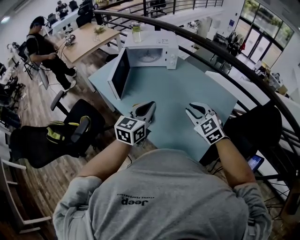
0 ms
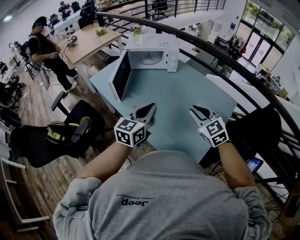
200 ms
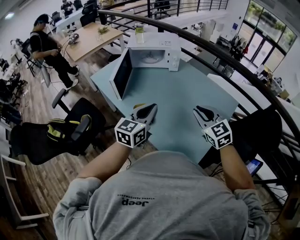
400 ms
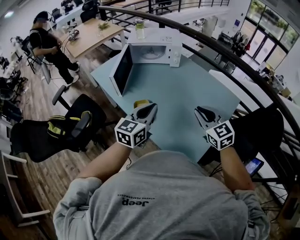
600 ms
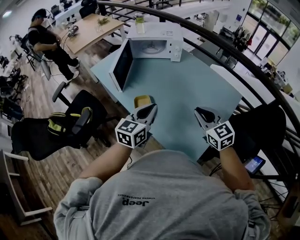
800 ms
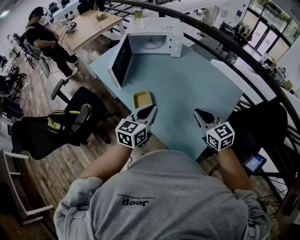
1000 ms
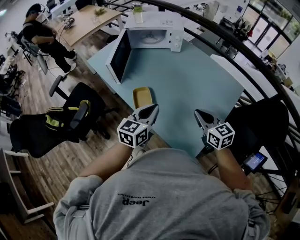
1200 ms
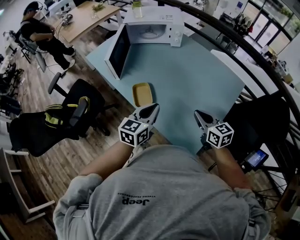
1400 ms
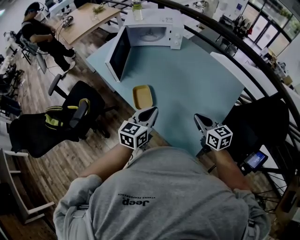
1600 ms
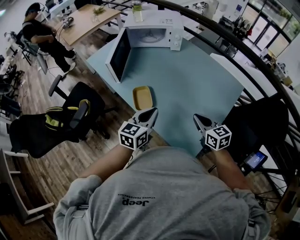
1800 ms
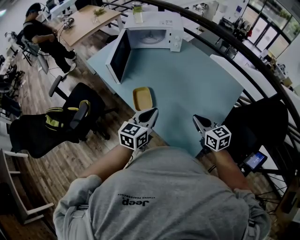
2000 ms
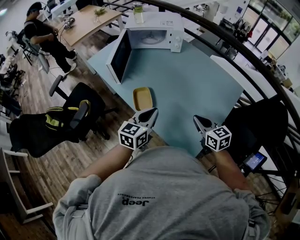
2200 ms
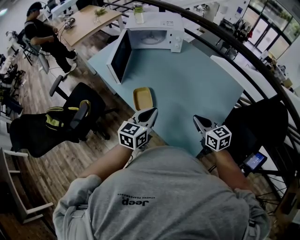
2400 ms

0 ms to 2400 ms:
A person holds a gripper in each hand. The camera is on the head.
0 ms to 1200 ms: Both grippers travel together downward, approximately 5 cm. The right gripper turns by roughly 30 degrees.
1200 ms to 2400 ms: The grippers make only small movements.

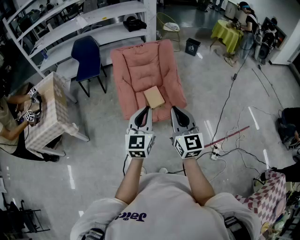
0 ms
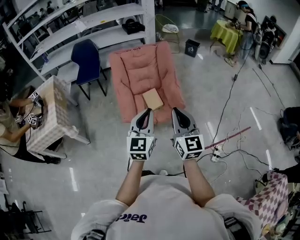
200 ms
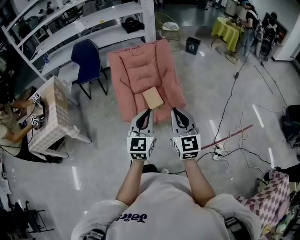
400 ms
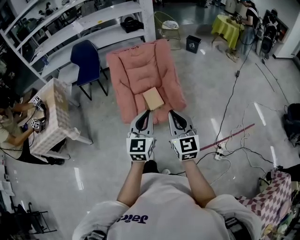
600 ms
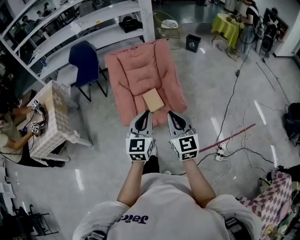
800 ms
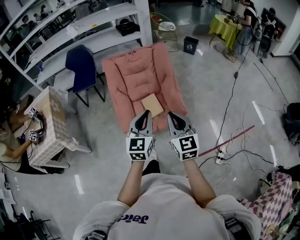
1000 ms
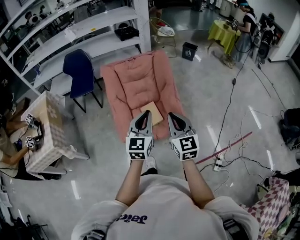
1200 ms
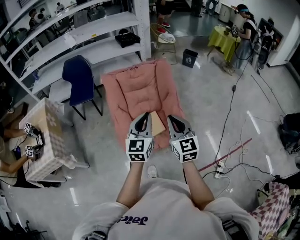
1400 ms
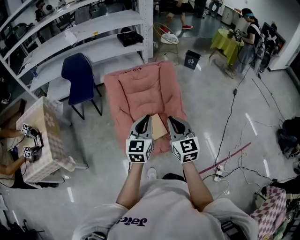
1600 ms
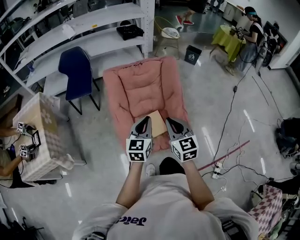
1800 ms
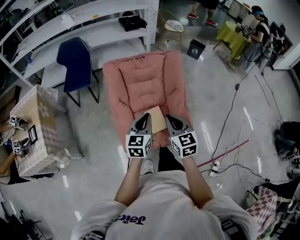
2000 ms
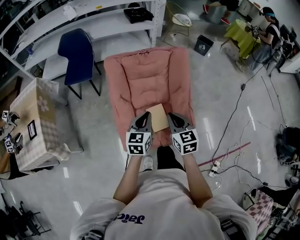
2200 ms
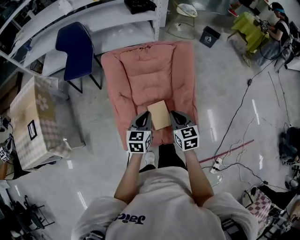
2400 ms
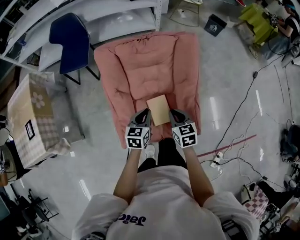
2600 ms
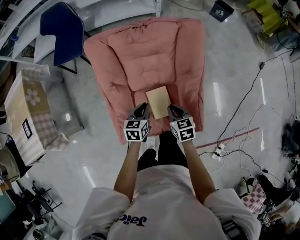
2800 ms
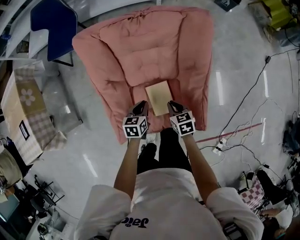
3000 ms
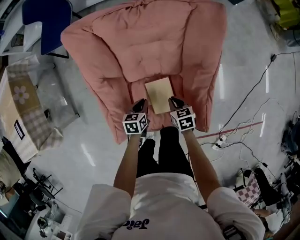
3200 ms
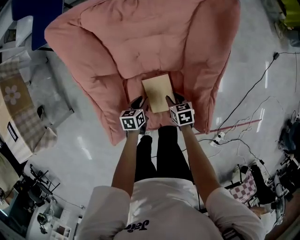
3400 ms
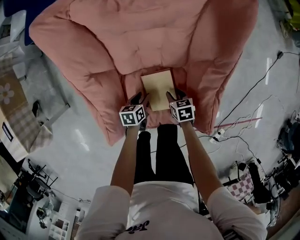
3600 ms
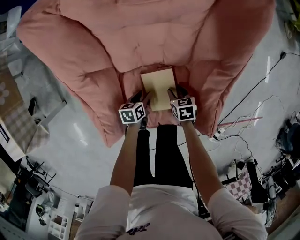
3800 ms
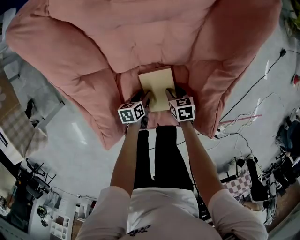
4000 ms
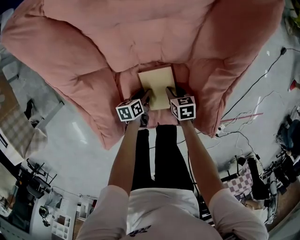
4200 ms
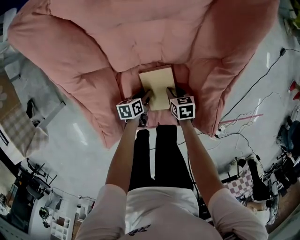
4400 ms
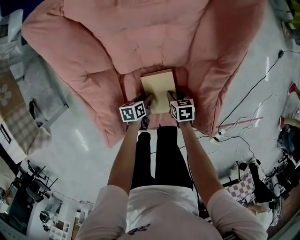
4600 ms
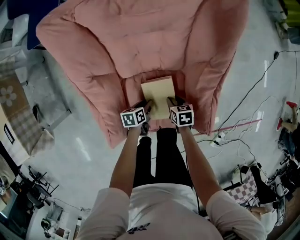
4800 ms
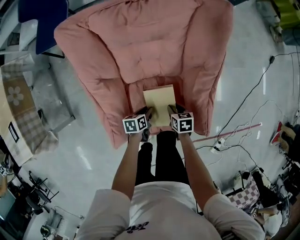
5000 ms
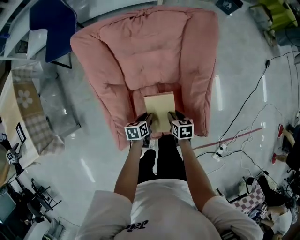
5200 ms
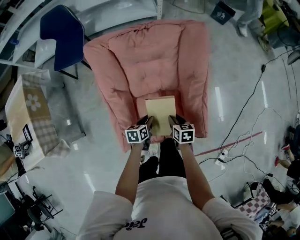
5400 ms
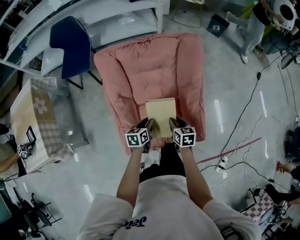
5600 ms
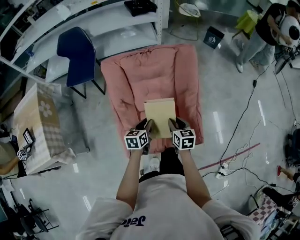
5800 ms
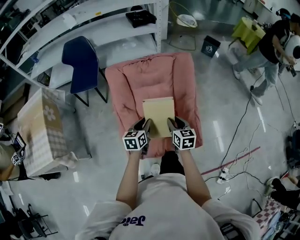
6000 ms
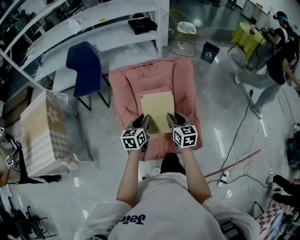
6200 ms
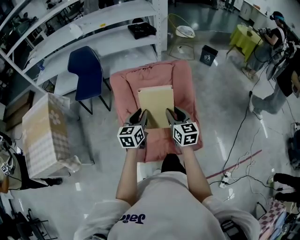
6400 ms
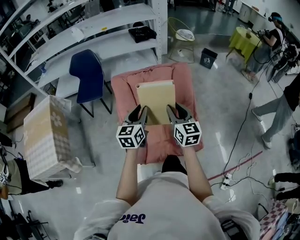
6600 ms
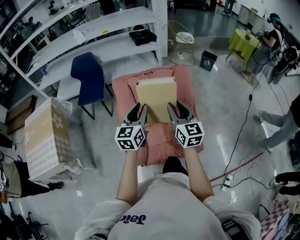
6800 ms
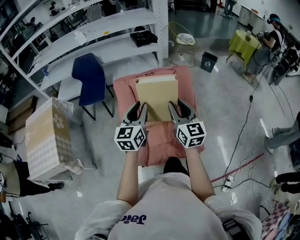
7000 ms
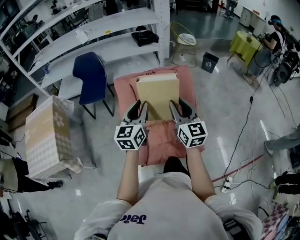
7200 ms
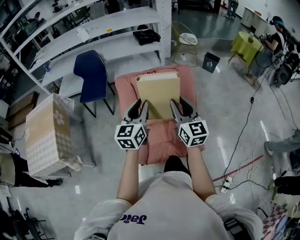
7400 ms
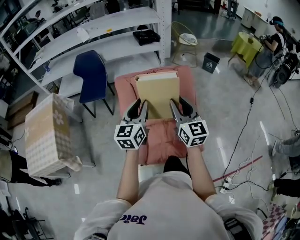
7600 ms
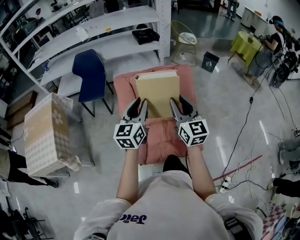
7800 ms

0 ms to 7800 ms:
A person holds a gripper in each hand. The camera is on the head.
0 ms to 1600 ms: The grippers both shift forward by roughly 30 cm.
1600 ms to 3200 ms: The grippers both shift downward and forward by roughly 60 cm. The right gripper tips its fingers downward by roughly 50 degrees. Meanwhile the left gripper points its fingers about 50 degrees further downward.
3200 ms to 4600 ms: The two grippers go about 15 cm downward. The right gripper opens its fingers, while the left gripper rotates approximately 20 degrees, and opens its fingers.
4600 ms to 6200 ms: The two grippers go some 50 cm upward. The right gripper tips its fingers upward by roughly 50 degrees. Meanwhile the left gripper tips its fingers upward by some 30 degrees.
6200 ms to 7800 ms: The two grippers go about 20 cm upward. The left gripper changes its angle by about 20 degrees; the right gripper changes its angle by roughly 30 degrees.

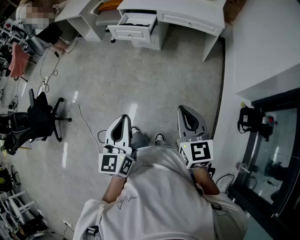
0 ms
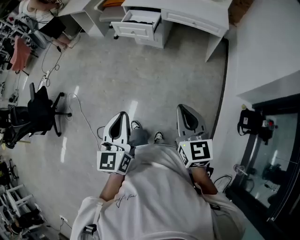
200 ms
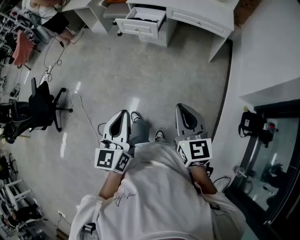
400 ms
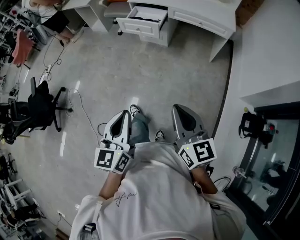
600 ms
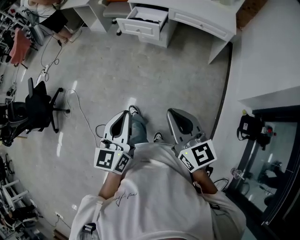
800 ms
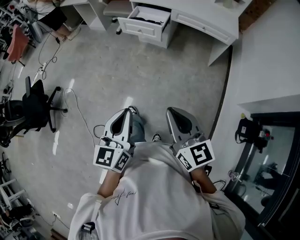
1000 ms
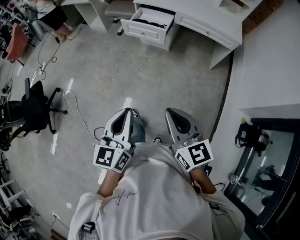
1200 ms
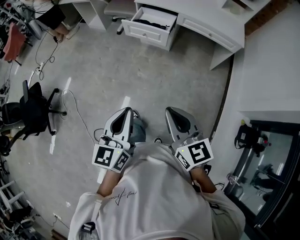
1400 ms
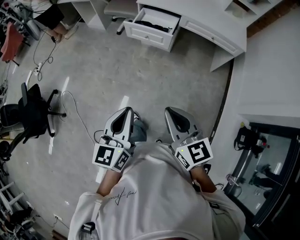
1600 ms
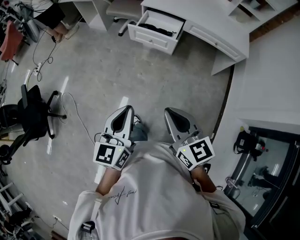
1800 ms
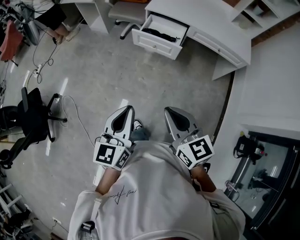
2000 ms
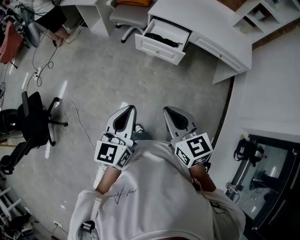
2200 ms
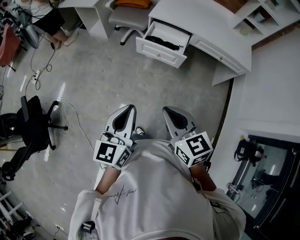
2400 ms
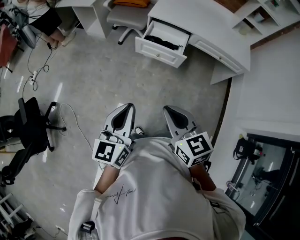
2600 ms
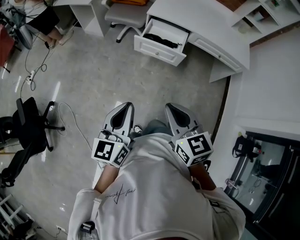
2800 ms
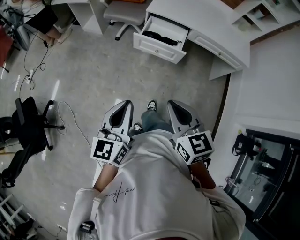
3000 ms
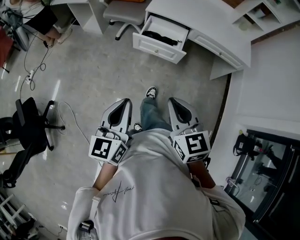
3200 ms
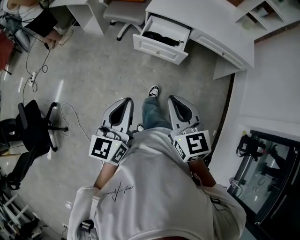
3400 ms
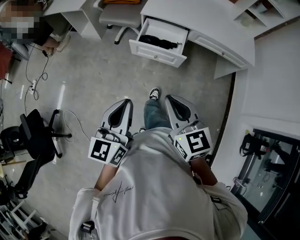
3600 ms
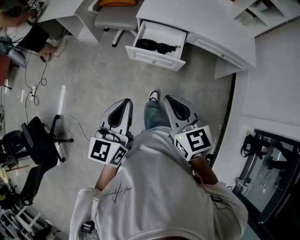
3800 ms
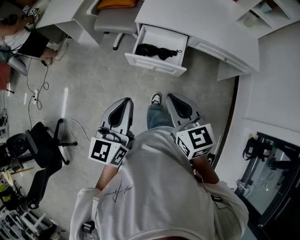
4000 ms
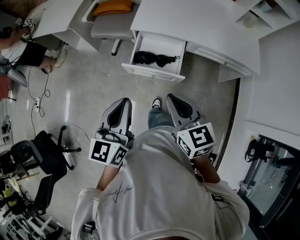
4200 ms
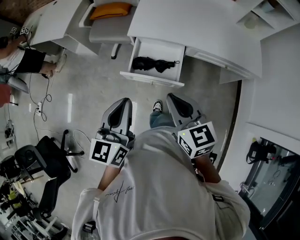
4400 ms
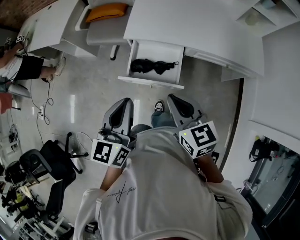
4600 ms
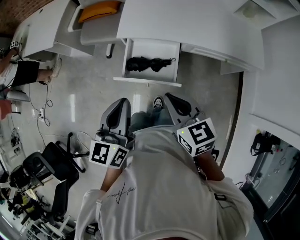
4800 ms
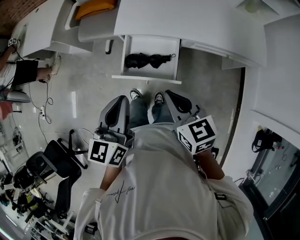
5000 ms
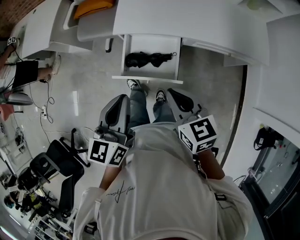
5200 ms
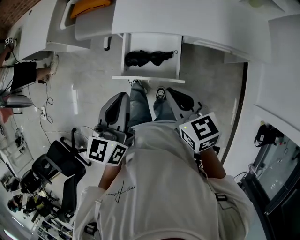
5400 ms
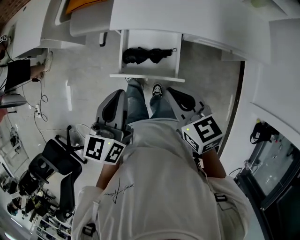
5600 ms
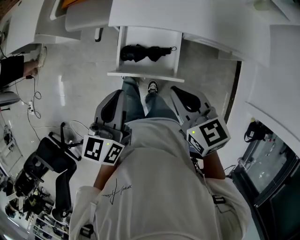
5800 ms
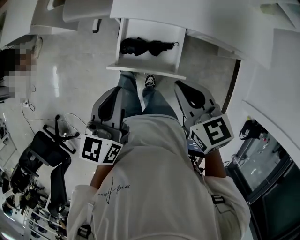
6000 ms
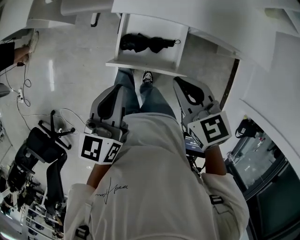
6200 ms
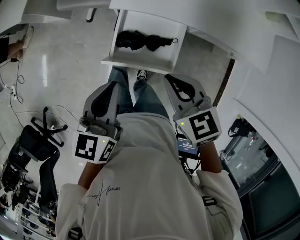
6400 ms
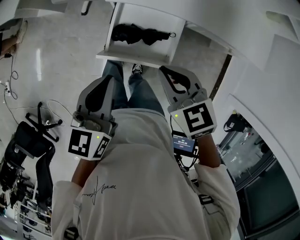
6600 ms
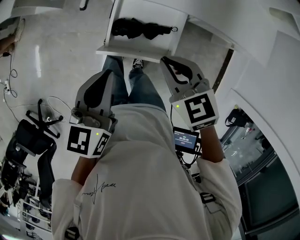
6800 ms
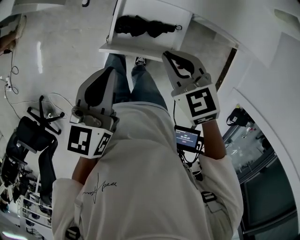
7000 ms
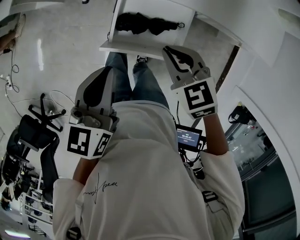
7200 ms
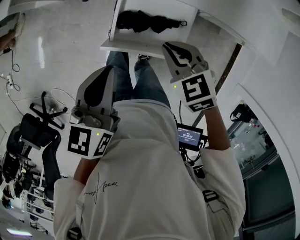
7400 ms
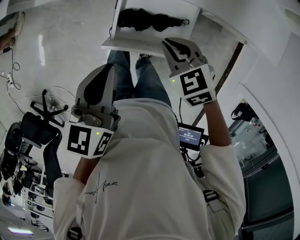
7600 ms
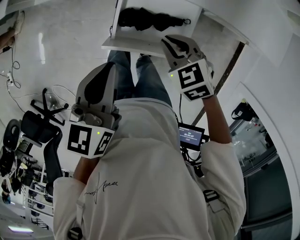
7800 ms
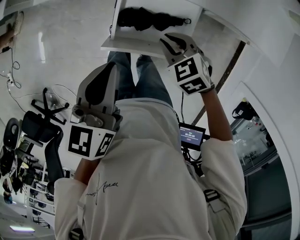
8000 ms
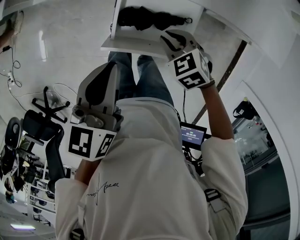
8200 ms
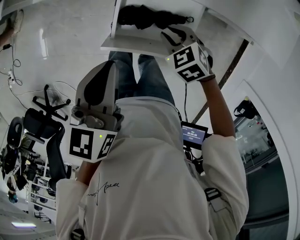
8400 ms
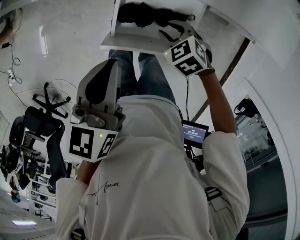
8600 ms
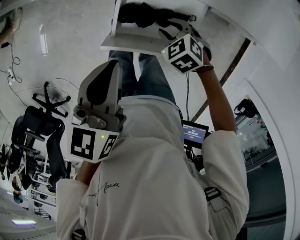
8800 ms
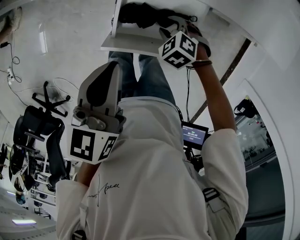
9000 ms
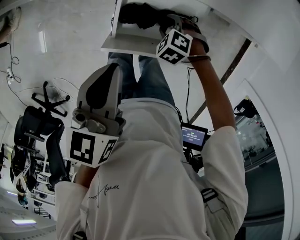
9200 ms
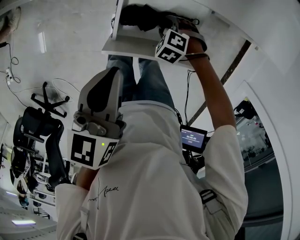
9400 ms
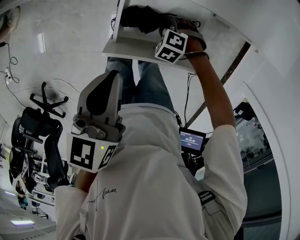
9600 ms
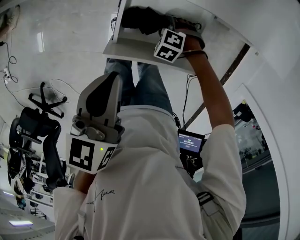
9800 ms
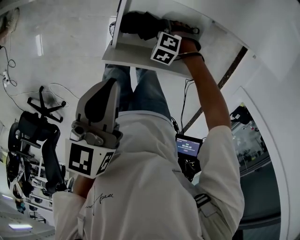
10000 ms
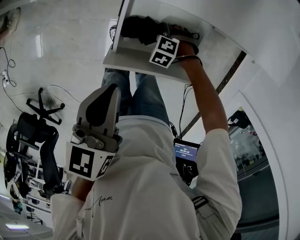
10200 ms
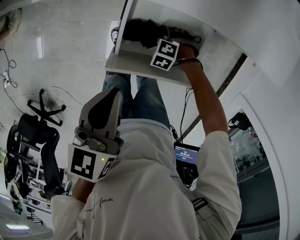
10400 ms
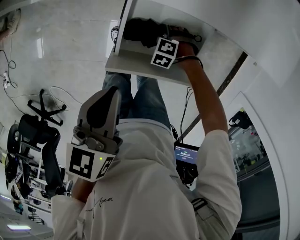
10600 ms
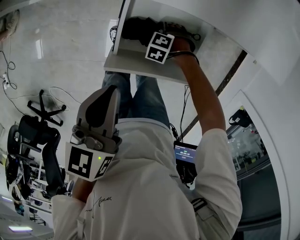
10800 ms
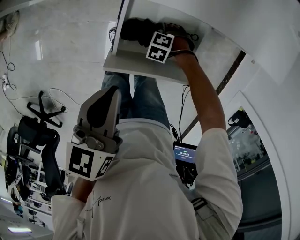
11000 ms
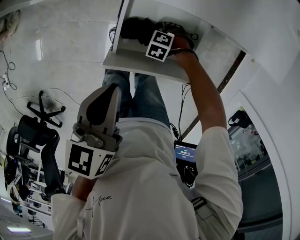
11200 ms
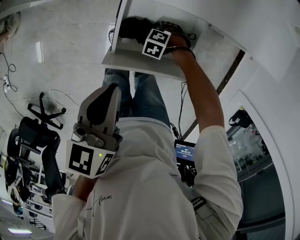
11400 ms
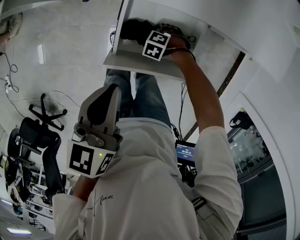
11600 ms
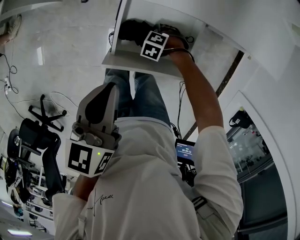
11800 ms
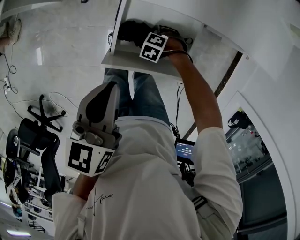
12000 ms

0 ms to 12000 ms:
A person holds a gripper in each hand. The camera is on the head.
0 ms to 1600 ms: Both grippers travel together forward and to the left, about 25 cm.
1600 ms to 3000 ms: Both grippers move forward and to the left, some 20 cm.
3000 ms to 4400 ms: The grippers both shift forward by roughly 30 cm.
4400 ms to 6000 ms: Both grippers move forward and downward, roughly 15 cm.
6000 ms to 7600 ms: The right gripper moves downward and forward, about 15 cm, and turns by roughly 30 degrees, while the left gripper is displaced downward by approximately 5 cm.
7600 ms to 9000 ms: The right gripper shifts approximately 15 cm downward, rotates about 30 degrees, and opens.
9000 ms to 10400 ms: The right gripper is displaced downward by about 10 cm, and changes its angle by some 20 degrees.
10400 ms to 12000 ms: The grippers stay close to where they were, moving slightly.

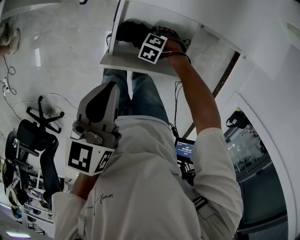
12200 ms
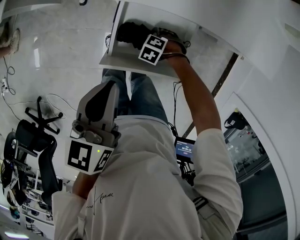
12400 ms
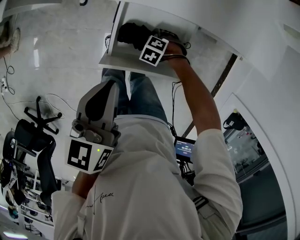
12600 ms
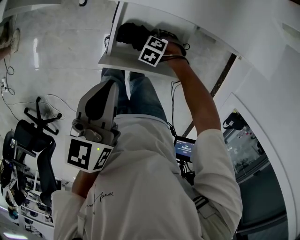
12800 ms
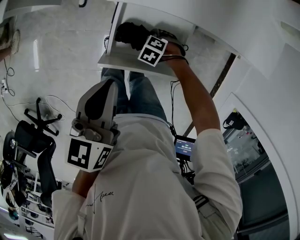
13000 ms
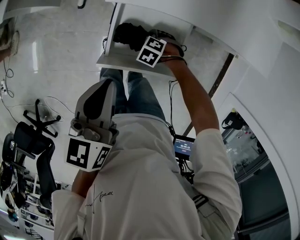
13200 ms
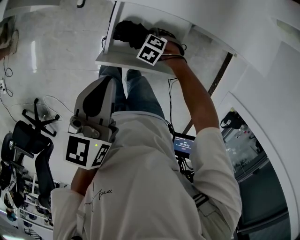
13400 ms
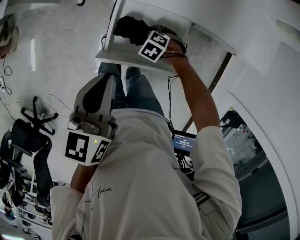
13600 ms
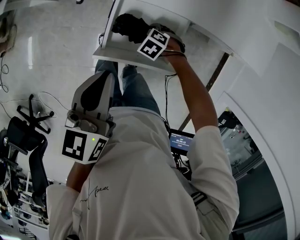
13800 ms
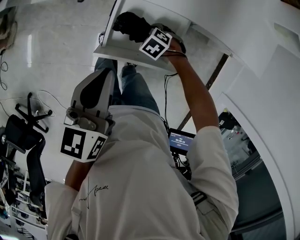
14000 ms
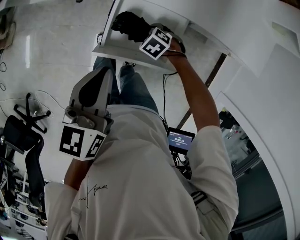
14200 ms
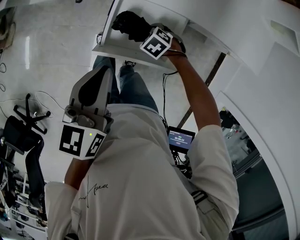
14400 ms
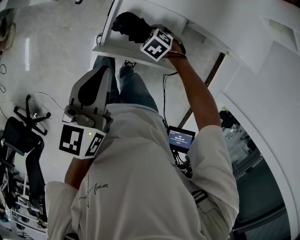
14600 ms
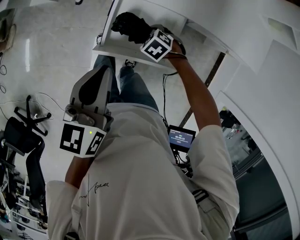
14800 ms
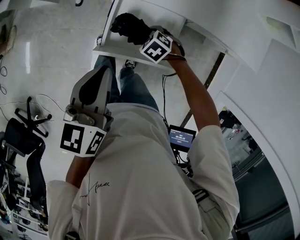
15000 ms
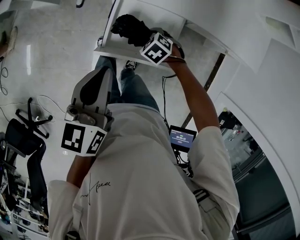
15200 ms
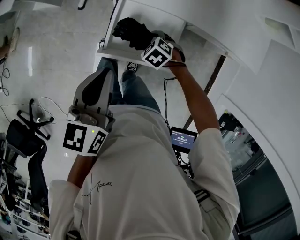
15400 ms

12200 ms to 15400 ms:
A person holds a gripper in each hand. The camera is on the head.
12200 ms to 13800 ms: The right gripper moves upward, some 5 cm.
13800 ms to 15400 ms: There are only small adjustments of the grippers.
